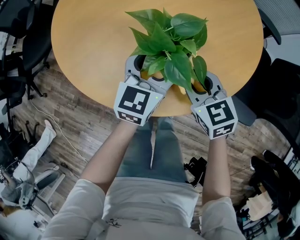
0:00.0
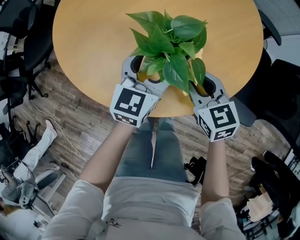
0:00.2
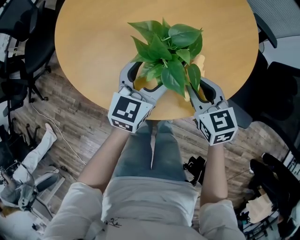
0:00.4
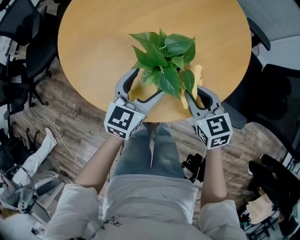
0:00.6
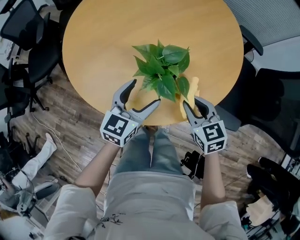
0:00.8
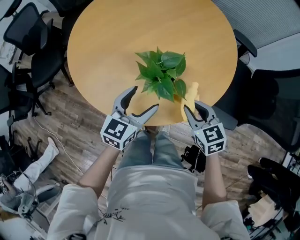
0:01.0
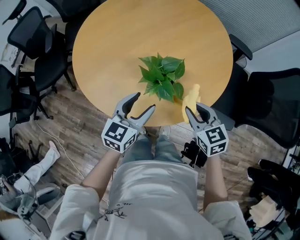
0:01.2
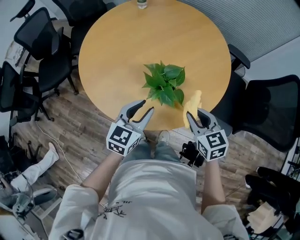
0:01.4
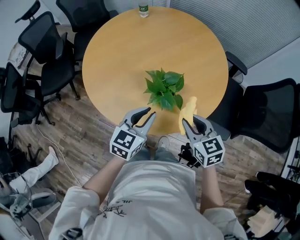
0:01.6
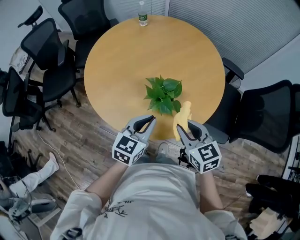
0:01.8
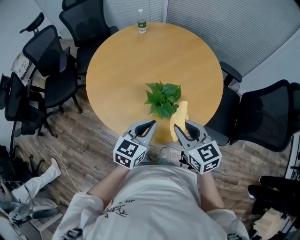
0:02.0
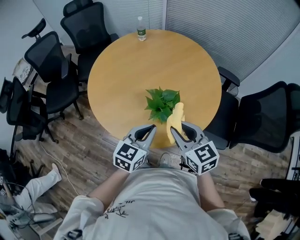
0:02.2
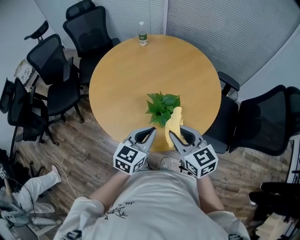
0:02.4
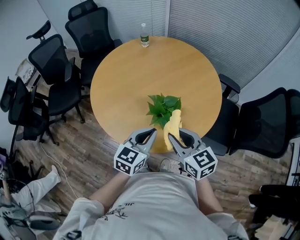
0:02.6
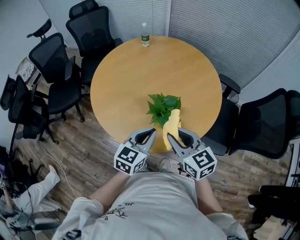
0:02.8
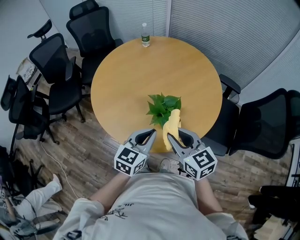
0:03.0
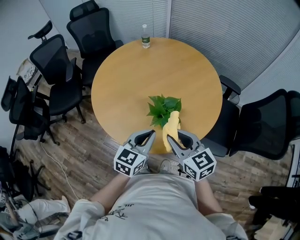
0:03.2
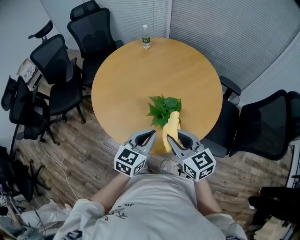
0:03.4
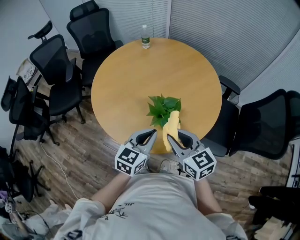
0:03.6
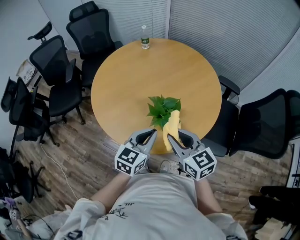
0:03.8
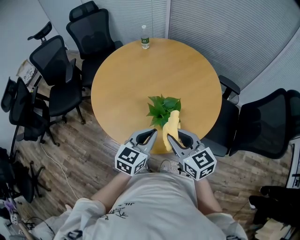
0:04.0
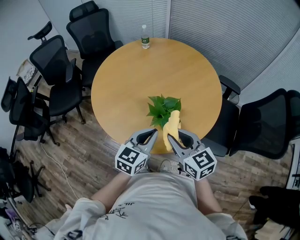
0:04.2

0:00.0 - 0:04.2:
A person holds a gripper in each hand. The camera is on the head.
0:00.0 - 0:01.4: The left gripper travels upward and backward by about 15 cm, and closes up. The right gripper heads upward, to the right and backward, covering about 15 cm.
0:01.4 - 0:02.8: The left gripper goes some 5 cm upward. Meanwhile the right gripper moves upward and to the left, roughly 15 cm.
0:02.8 - 0:04.2: Neither gripper changes place.

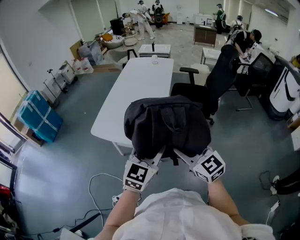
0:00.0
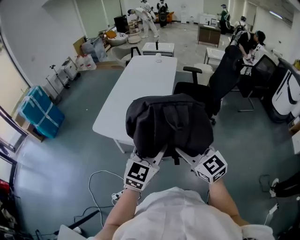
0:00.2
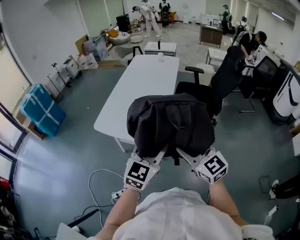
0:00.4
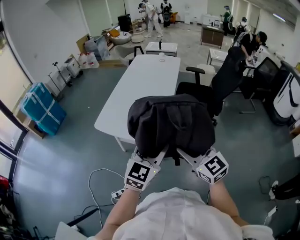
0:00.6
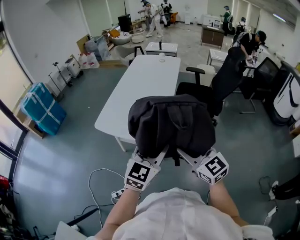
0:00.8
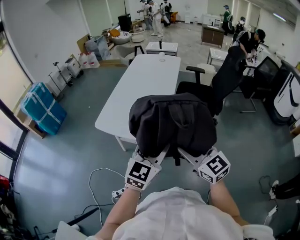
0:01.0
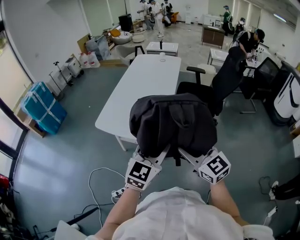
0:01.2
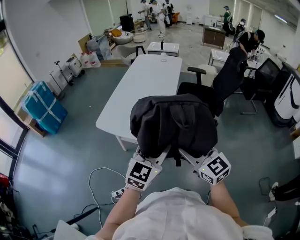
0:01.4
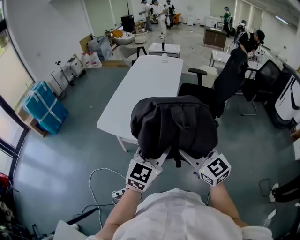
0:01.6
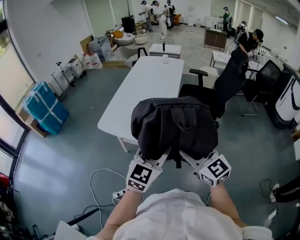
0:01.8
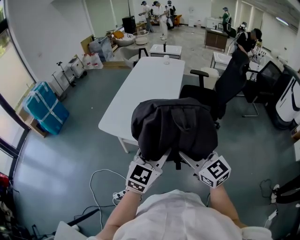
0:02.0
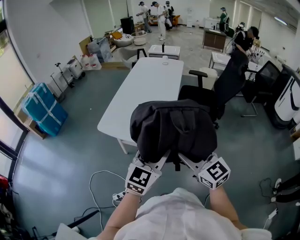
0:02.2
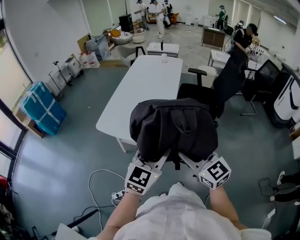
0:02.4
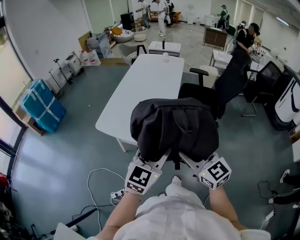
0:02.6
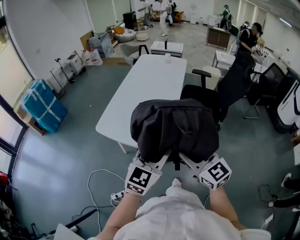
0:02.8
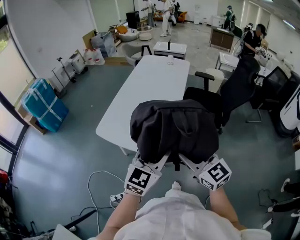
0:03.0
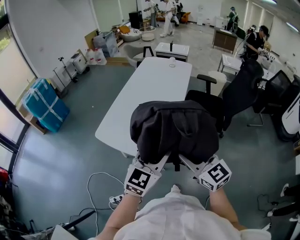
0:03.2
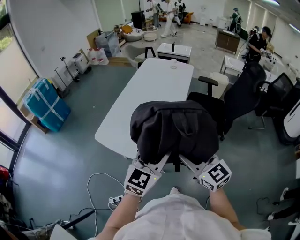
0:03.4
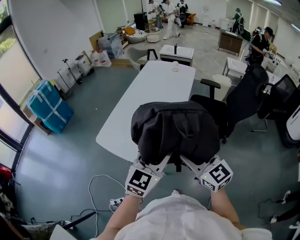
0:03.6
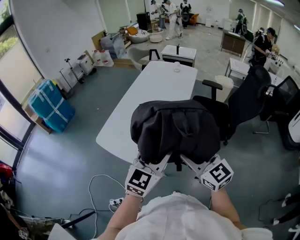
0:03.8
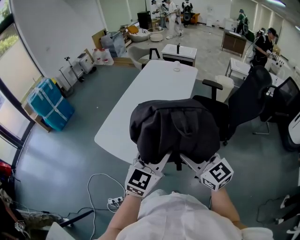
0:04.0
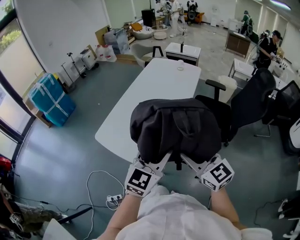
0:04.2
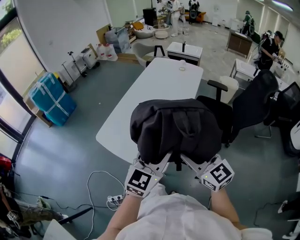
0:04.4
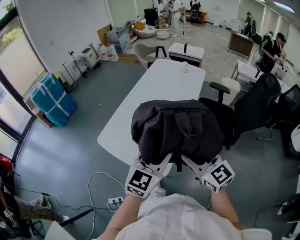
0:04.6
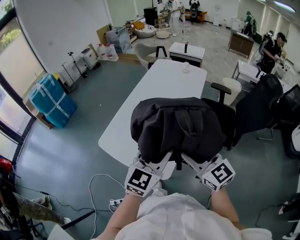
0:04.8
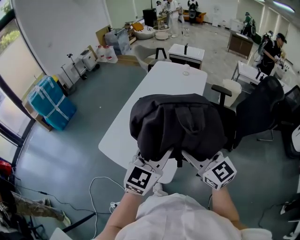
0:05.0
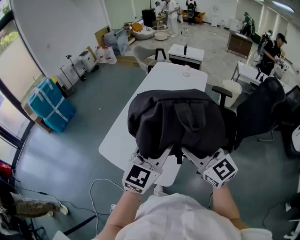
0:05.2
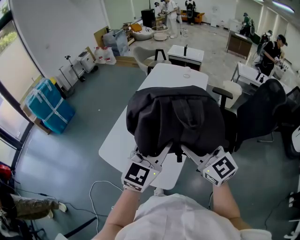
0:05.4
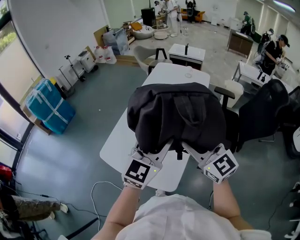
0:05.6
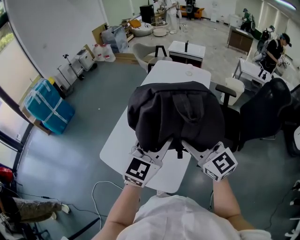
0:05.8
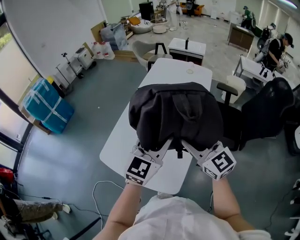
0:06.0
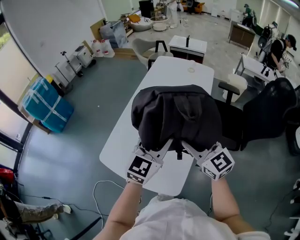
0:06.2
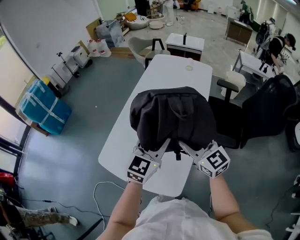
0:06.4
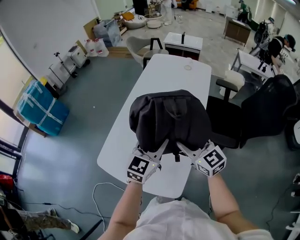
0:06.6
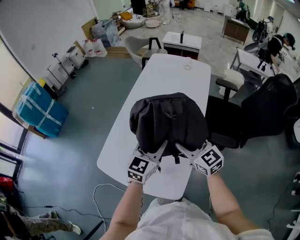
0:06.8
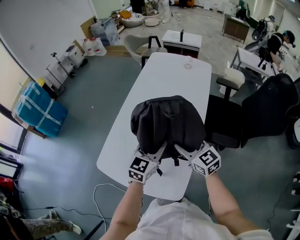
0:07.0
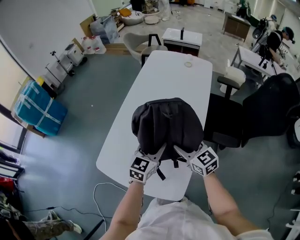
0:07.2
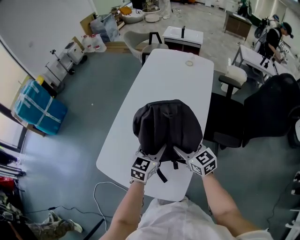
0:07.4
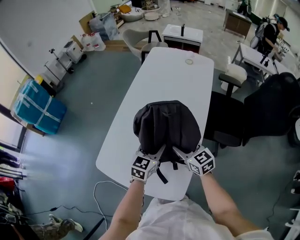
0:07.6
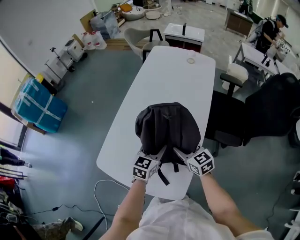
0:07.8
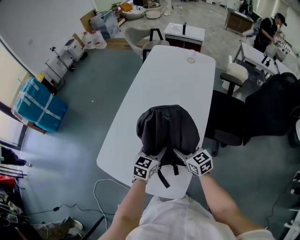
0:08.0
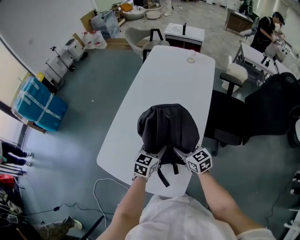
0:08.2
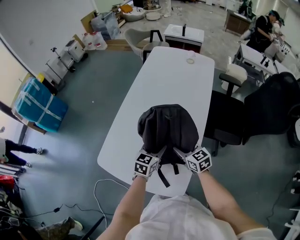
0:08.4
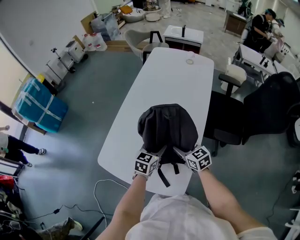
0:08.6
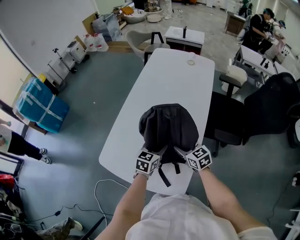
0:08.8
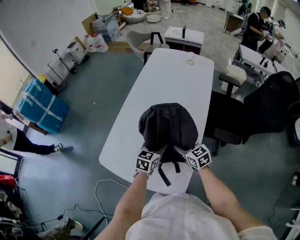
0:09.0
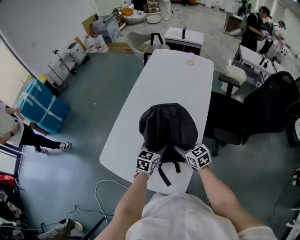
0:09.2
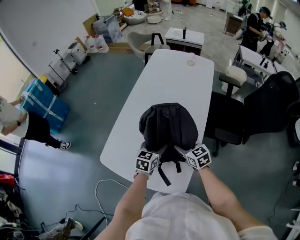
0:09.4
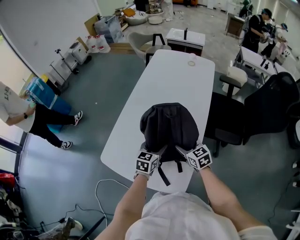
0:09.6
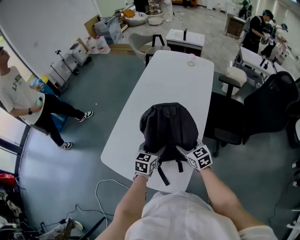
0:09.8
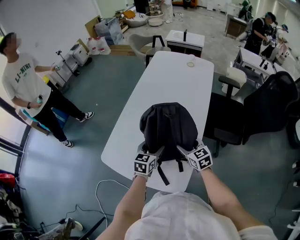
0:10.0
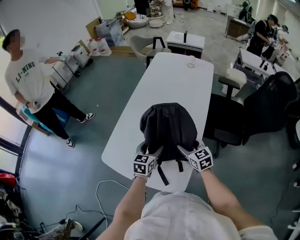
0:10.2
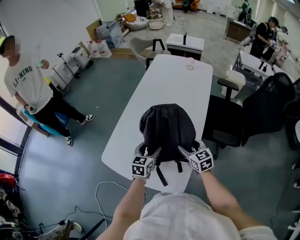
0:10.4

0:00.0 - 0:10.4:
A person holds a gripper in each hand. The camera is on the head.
0:00.0 - 0:01.4: The grippers move only a little.
0:01.4 - 0:03.0: Both grippers travel together forward, about 10 cm.
0:03.0 - 0:04.4: Both grippers travel together forward, approximately 10 cm.
0:04.4 - 0:06.0: The two grippers go approximately 20 cm forward.
0:06.0 - 0:07.4: Both grippers move downward, approximately 20 cm. The left gripper rotates some 20 degrees. Meanwhile the right gripper turns by approximately 20 degrees.
0:07.4 - 0:09.0: Both grippers travel together downward, roughly 5 cm.
0:09.0 - 0:10.4: The left gripper shifts by some 5 cm.

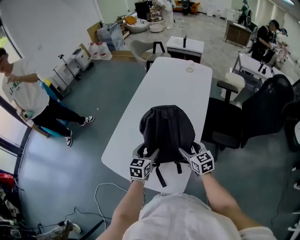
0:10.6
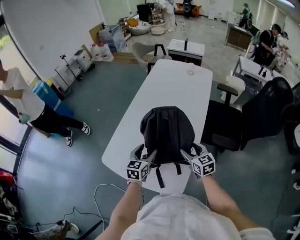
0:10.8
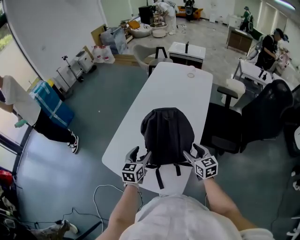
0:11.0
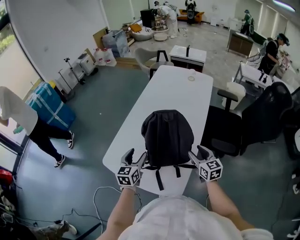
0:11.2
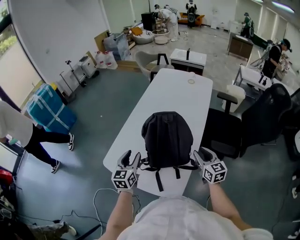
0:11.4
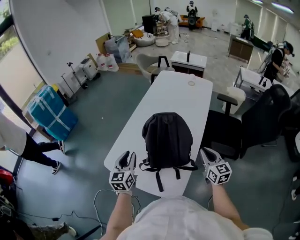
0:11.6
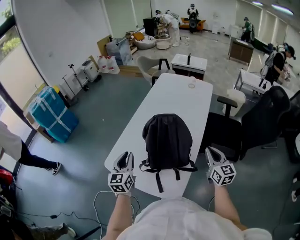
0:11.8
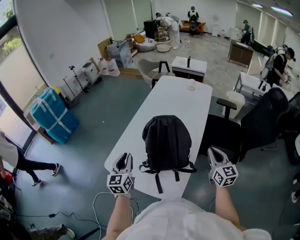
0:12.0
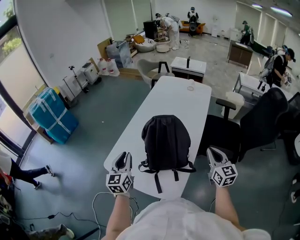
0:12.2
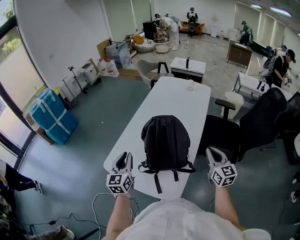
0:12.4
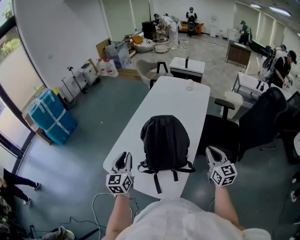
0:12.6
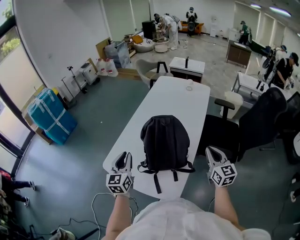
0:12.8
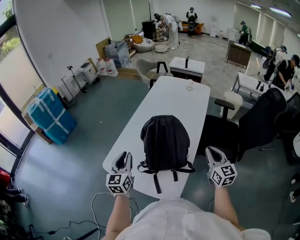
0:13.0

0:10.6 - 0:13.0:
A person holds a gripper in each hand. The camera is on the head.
0:10.6 - 0:11.8: The left gripper shifts about 15 cm upward and to the left, swivels some 20 degrees, and closes up, while the right gripper is displaced to the right and upward by roughly 15 cm, turns by about 20 degrees, and closes its fingers.
0:11.8 - 0:13.0: The grippers stay close to where they were, moving slightly.

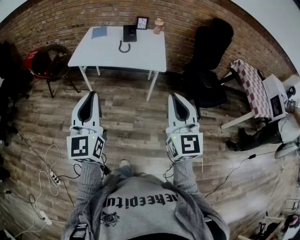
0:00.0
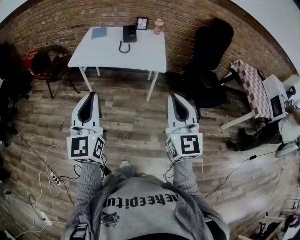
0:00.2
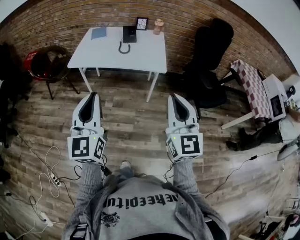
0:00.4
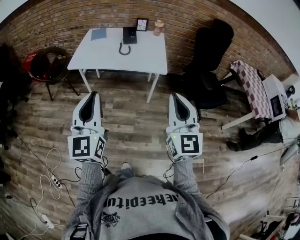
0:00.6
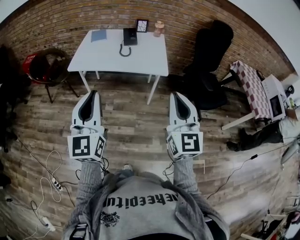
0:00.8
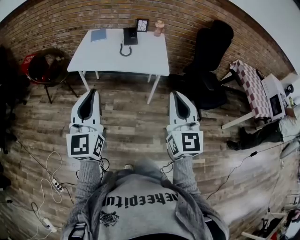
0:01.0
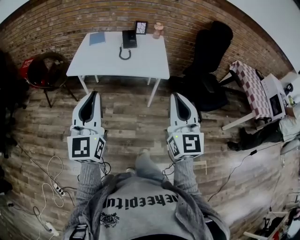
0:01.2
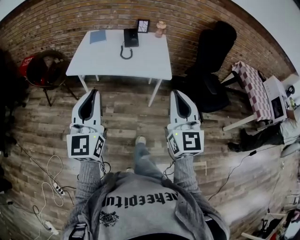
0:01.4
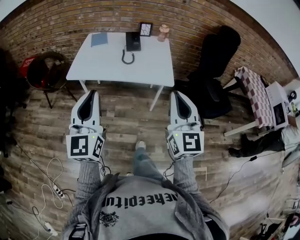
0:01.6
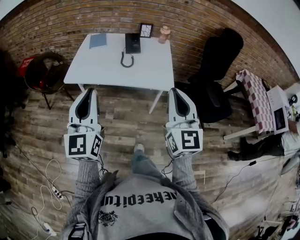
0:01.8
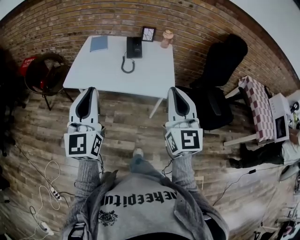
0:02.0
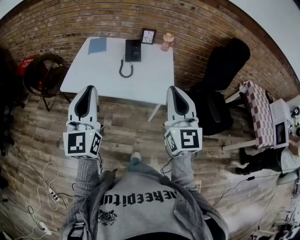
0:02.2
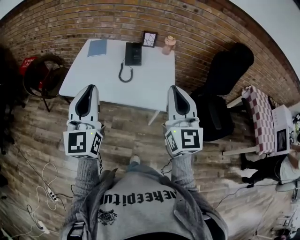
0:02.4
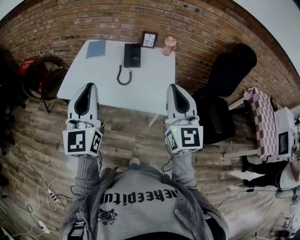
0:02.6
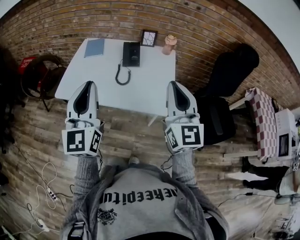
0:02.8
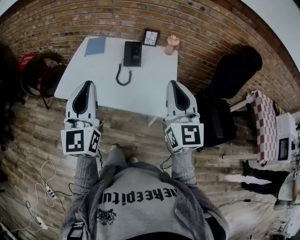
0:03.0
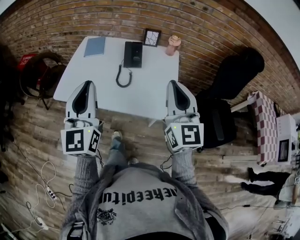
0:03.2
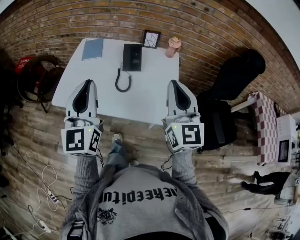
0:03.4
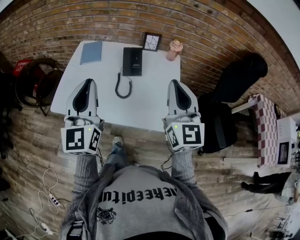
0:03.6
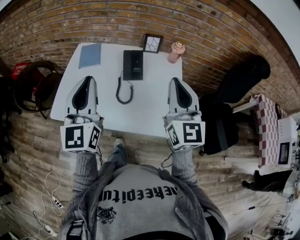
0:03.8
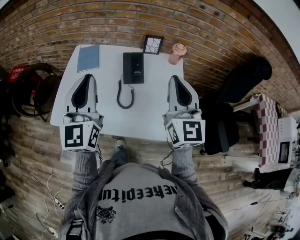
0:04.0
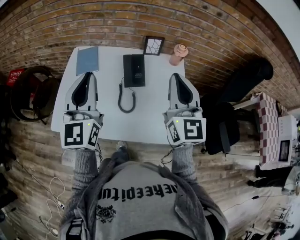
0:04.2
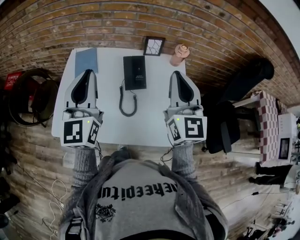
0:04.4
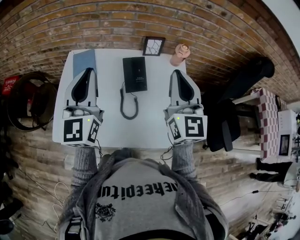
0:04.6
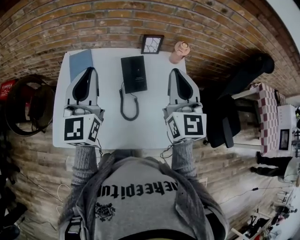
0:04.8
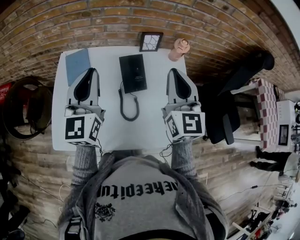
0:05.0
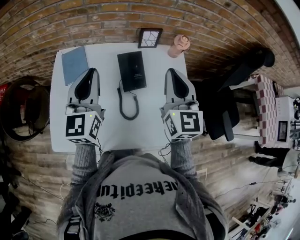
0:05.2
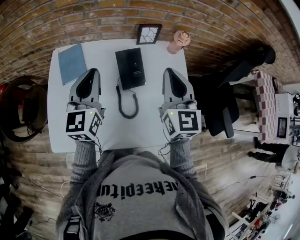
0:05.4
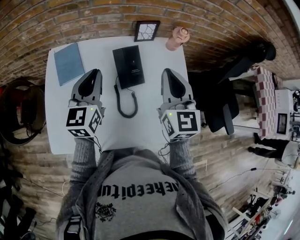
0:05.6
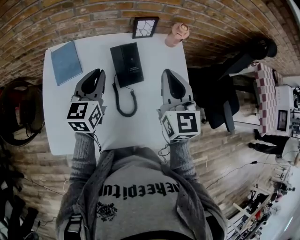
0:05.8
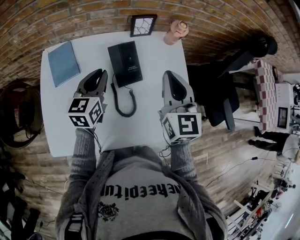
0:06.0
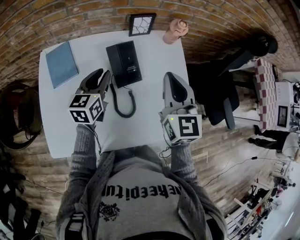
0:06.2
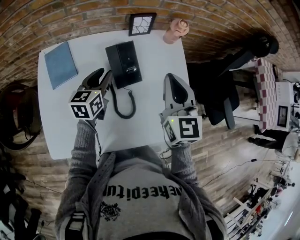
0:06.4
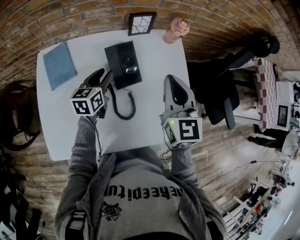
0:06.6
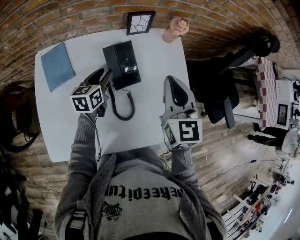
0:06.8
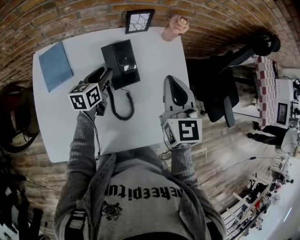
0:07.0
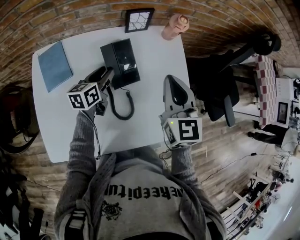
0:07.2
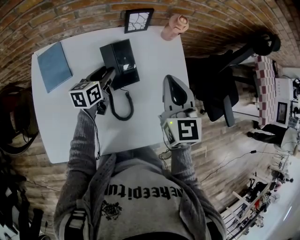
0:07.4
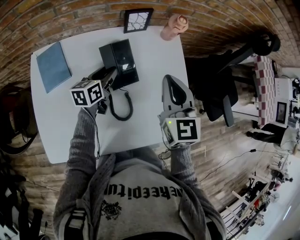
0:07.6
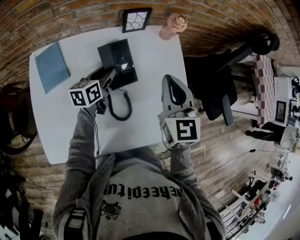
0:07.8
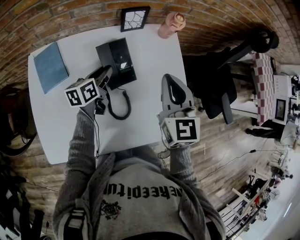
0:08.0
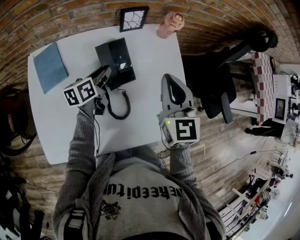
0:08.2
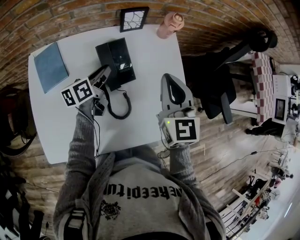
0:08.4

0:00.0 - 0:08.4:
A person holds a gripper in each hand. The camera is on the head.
0:00.0 - 0:01.4: The grippers both shift forward by some 10 cm.
0:01.4 - 0:02.8: Both grippers travel together forward, about 30 cm.
0:02.8 - 0:04.2: The two grippers go roughly 25 cm forward.
0:04.2 - 0:05.6: The right gripper goes approximately 15 cm forward and downward. Meanwhile the left gripper is displaced forward and downward by roughly 20 cm, and swivels approximately 30 degrees.
0:05.6 - 0:07.0: The left gripper heads downward, covering some 20 cm, turns by some 30 degrees, and opens its fingers; the right gripper shifts roughly 5 cm downward.
0:07.0 - 0:08.4: The left gripper turns by about 20 degrees.
